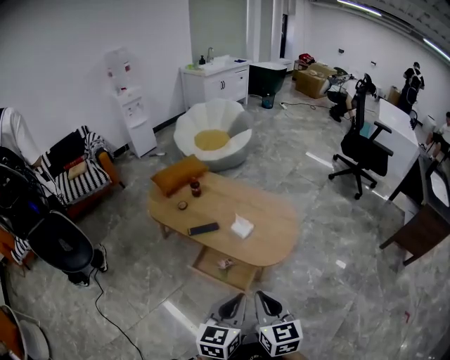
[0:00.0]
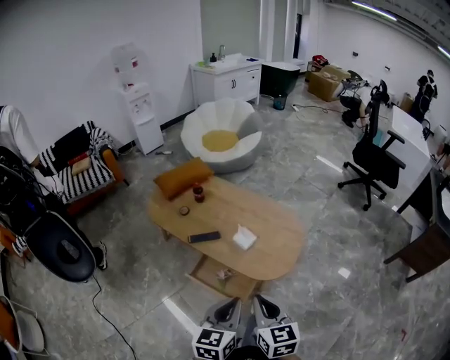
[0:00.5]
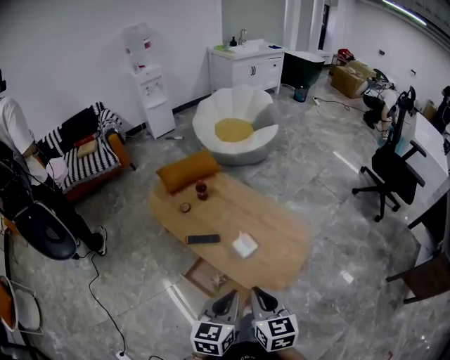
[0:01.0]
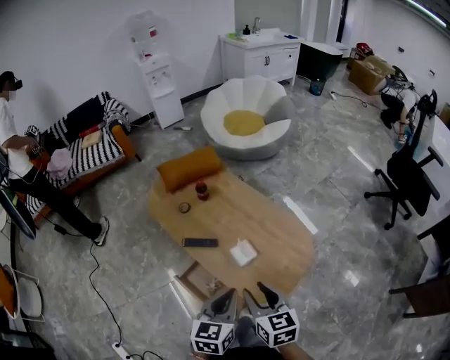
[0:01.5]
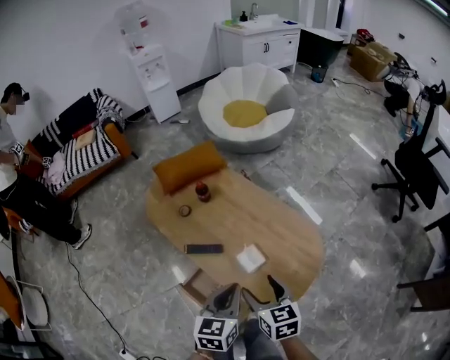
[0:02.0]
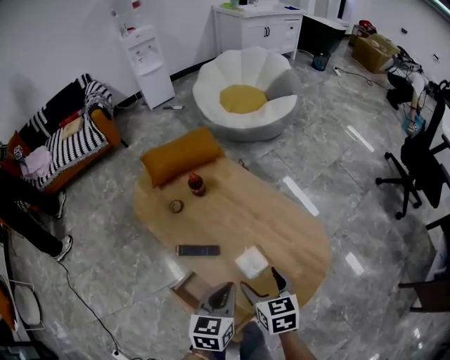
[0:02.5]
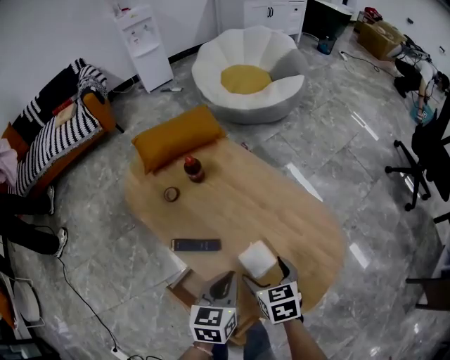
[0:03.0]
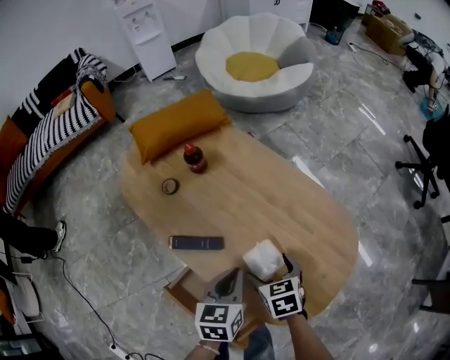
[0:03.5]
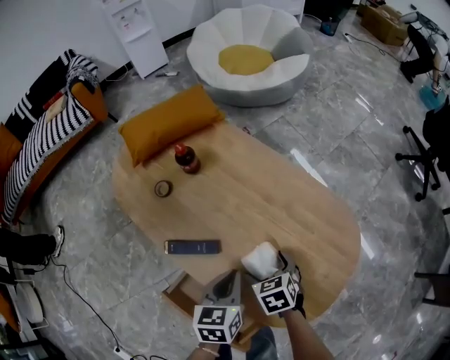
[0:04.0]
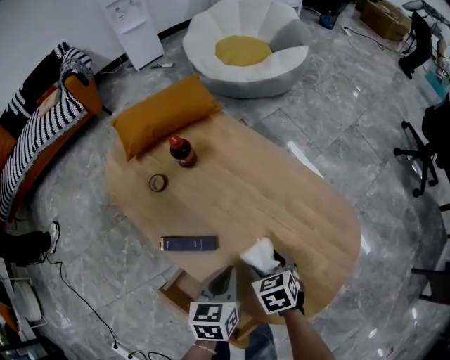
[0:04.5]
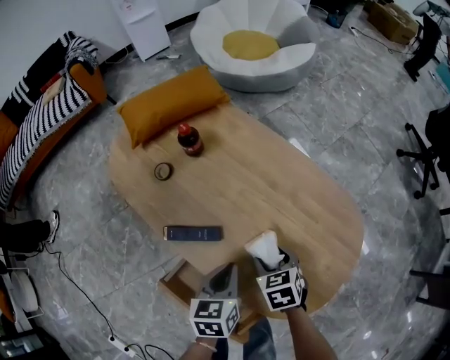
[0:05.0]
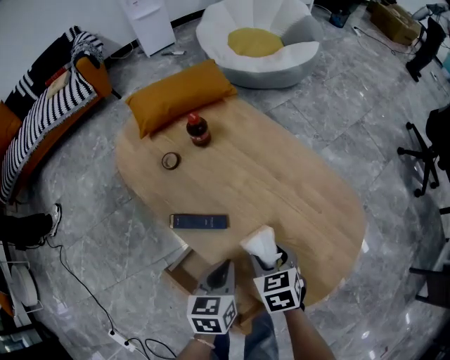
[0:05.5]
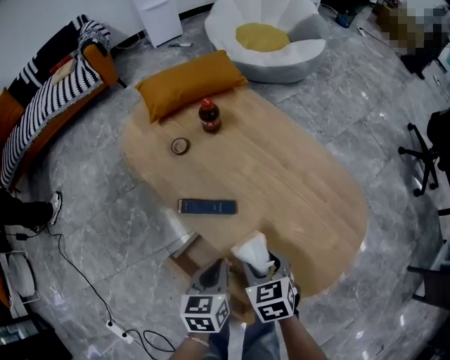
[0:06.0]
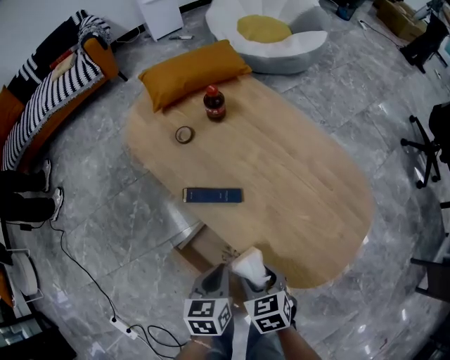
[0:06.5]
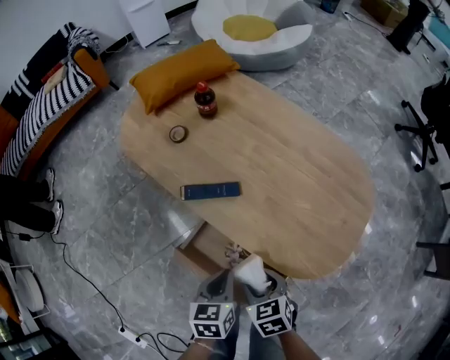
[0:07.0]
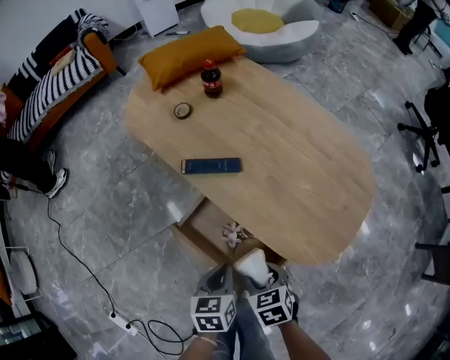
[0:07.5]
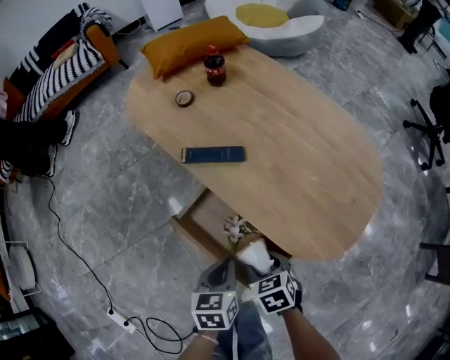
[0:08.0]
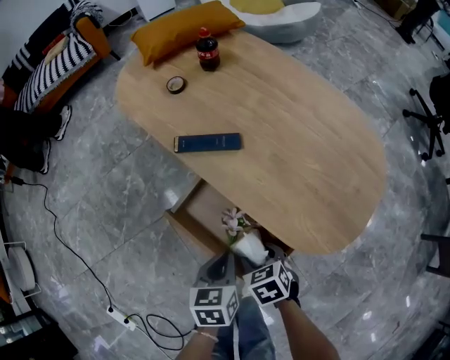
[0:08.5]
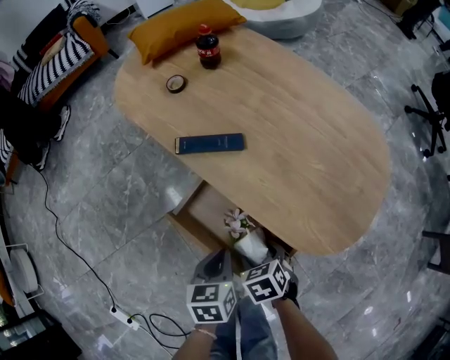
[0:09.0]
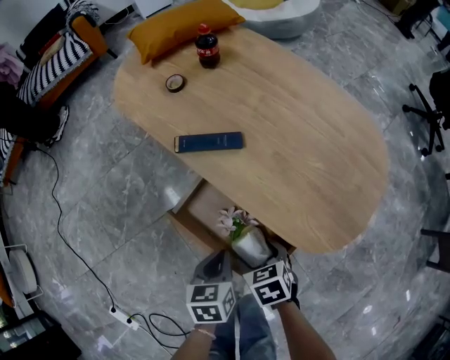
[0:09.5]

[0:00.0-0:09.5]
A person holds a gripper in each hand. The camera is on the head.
0:00.0 to 0:02.0: Both grippers move forward, approximately 30 cm. The left gripper turns by some 20 degrees, while the right gripper swivels roughly 30 degrees, and opens up.
0:02.0 to 0:04.0: Both grippers travel together downward, roughly 25 cm. The right gripper rotates approximately 30 degrees.
0:04.0 to 0:05.5: The left gripper changes place by roughly 5 cm, while the right gripper changes place by roughly 5 cm, and closes its fingers.
0:05.5 to 0:07.5: The left gripper is displaced backward and to the left by some 20 cm. Meanwhile the right gripper goes approximately 20 cm backward.
0:07.5 to 0:09.5: The right gripper goes roughly 5 cm downward.

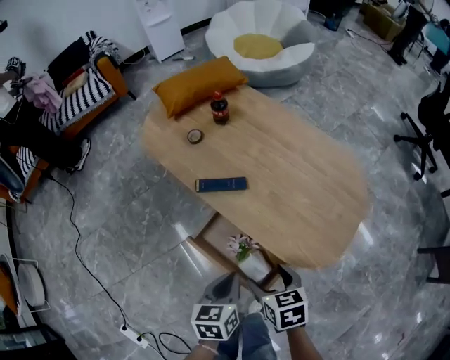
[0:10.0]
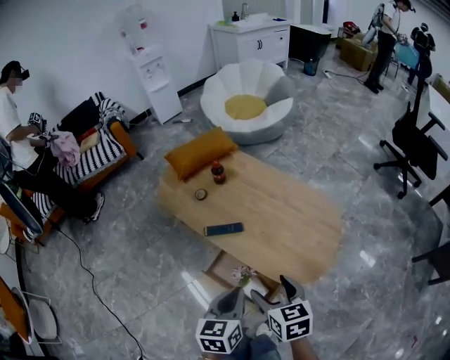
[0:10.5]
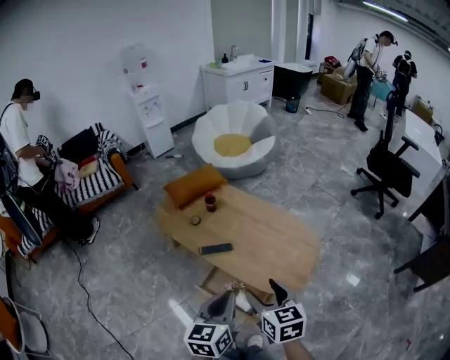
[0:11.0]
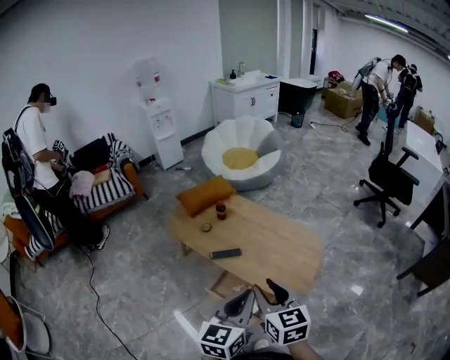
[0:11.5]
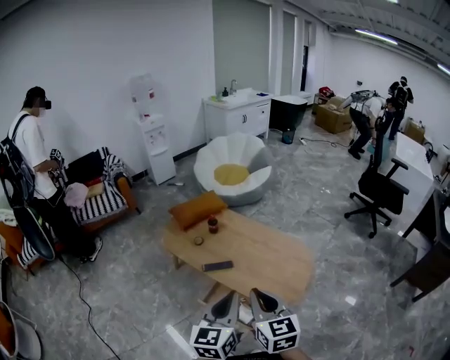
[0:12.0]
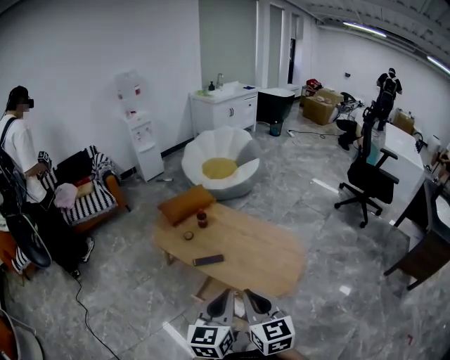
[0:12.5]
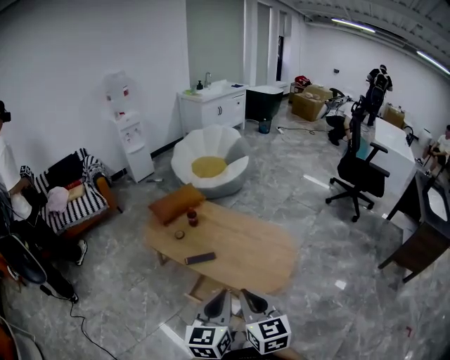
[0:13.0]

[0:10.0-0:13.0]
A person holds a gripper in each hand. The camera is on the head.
0:10.0 to 0:11.5: Both grippers travel together upward, some 40 cm. The right gripper points its fingers about 30 degrees further upward, and closes up. The left gripper points its fingers about 30 degrees further upward.
0:11.5 to 0:13.0: The grippers stay close to where they were, moving slightly.

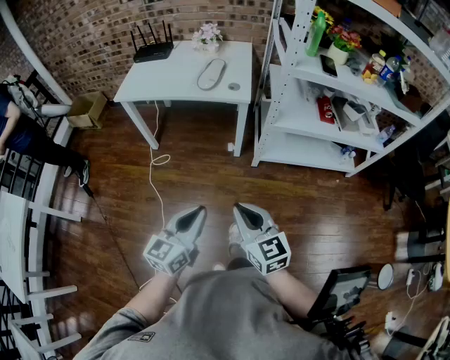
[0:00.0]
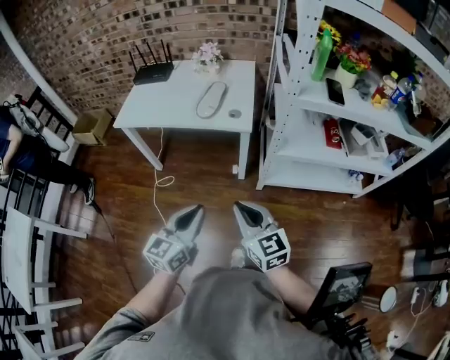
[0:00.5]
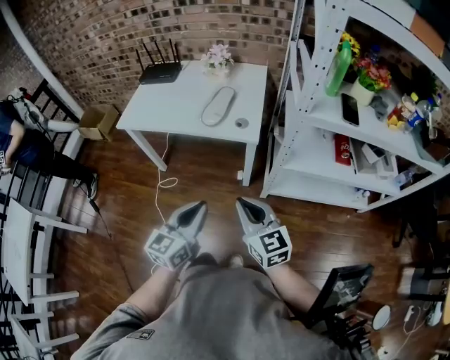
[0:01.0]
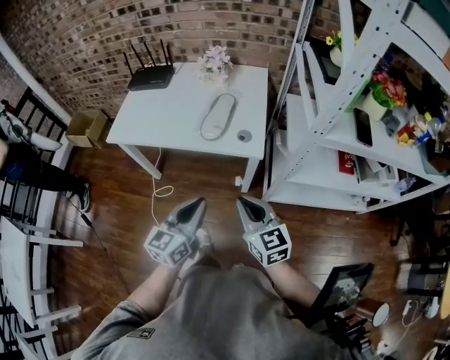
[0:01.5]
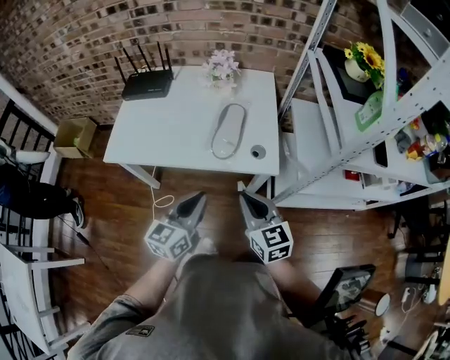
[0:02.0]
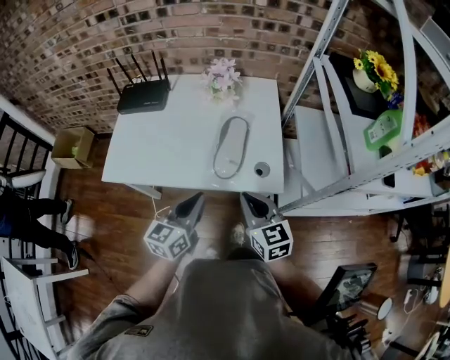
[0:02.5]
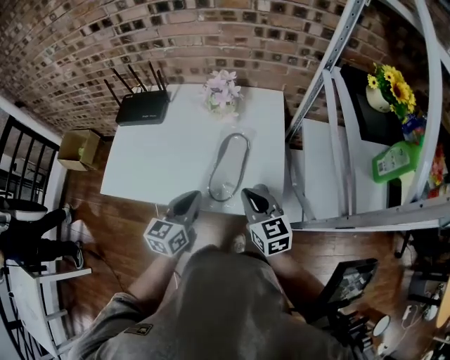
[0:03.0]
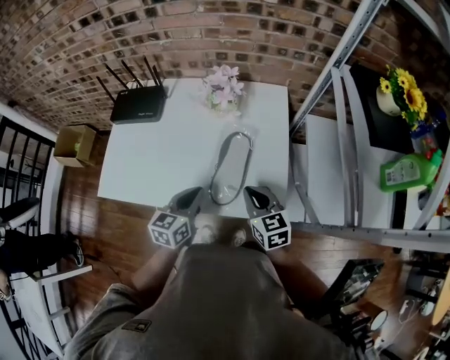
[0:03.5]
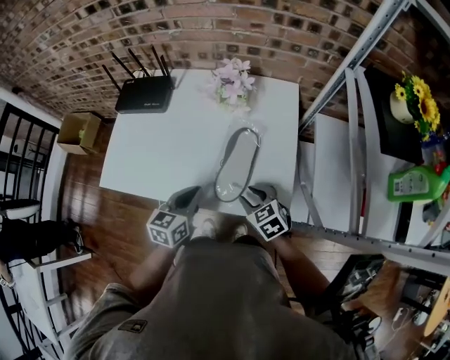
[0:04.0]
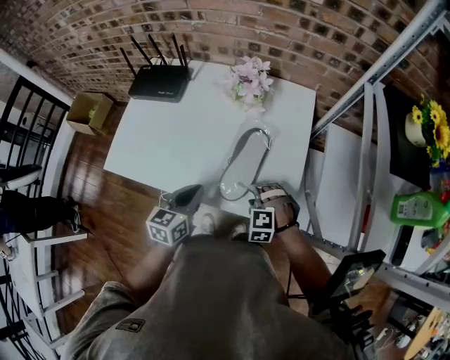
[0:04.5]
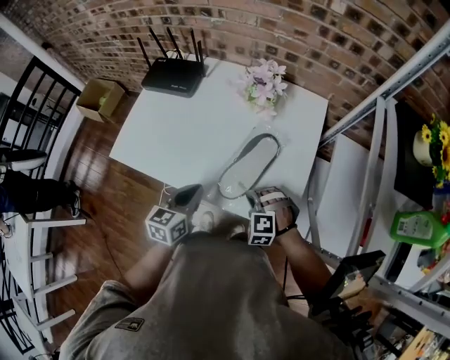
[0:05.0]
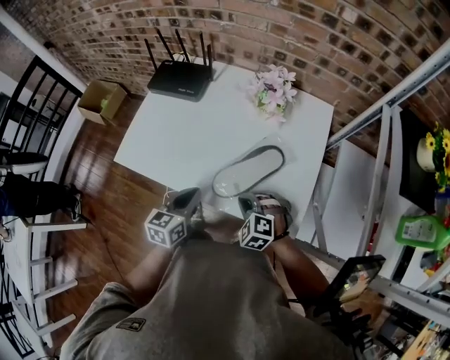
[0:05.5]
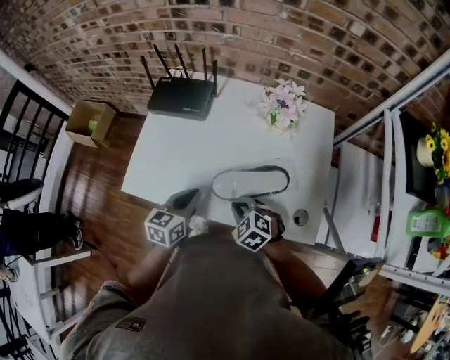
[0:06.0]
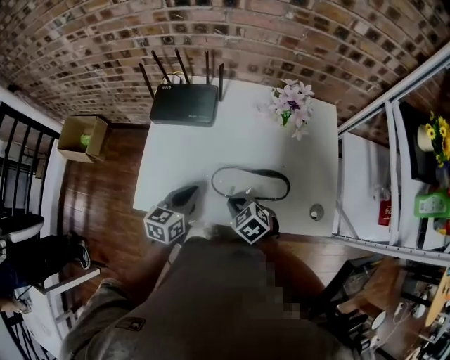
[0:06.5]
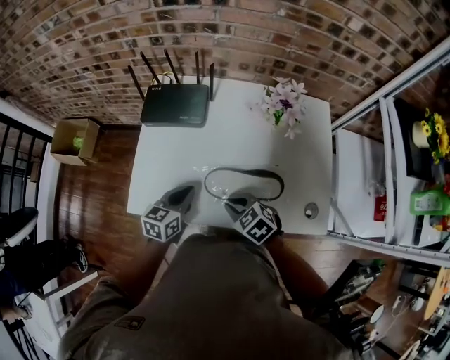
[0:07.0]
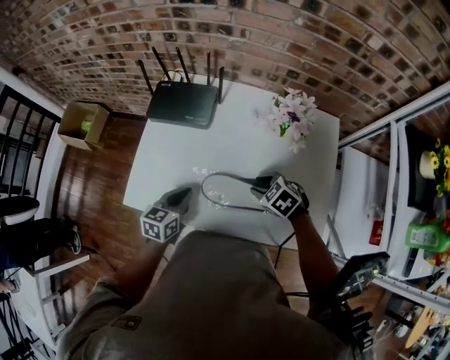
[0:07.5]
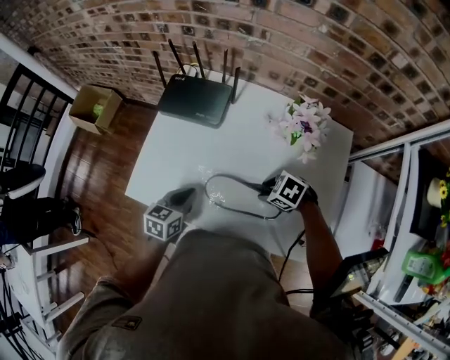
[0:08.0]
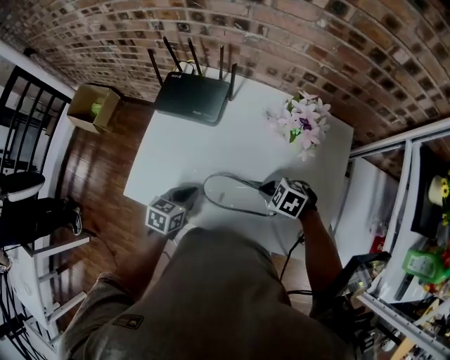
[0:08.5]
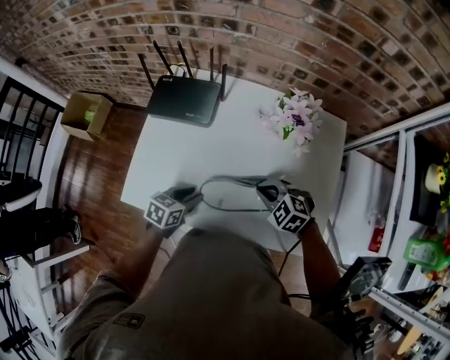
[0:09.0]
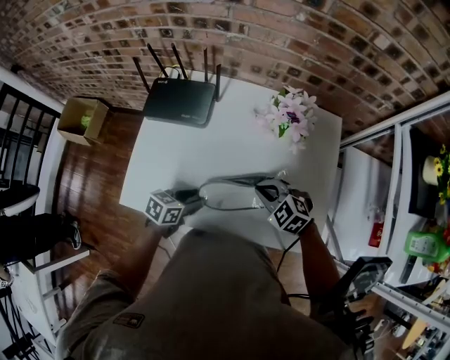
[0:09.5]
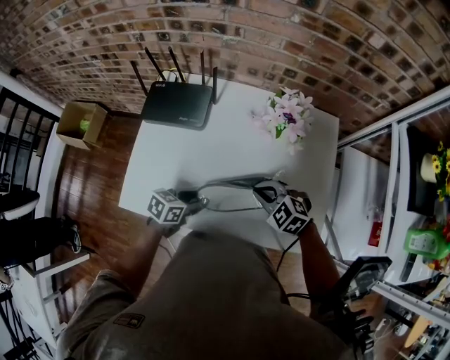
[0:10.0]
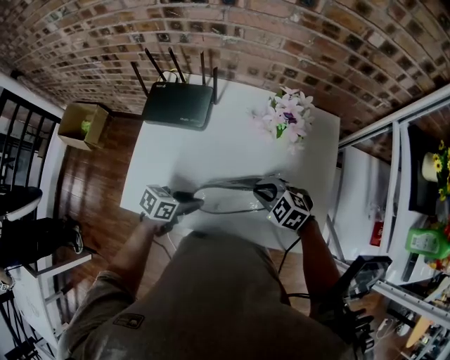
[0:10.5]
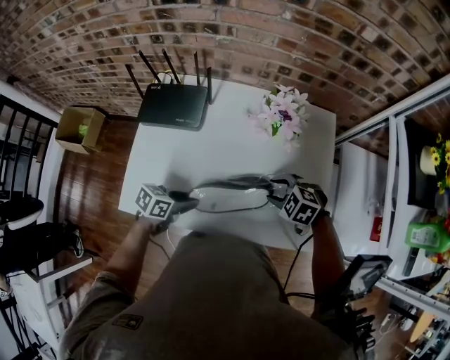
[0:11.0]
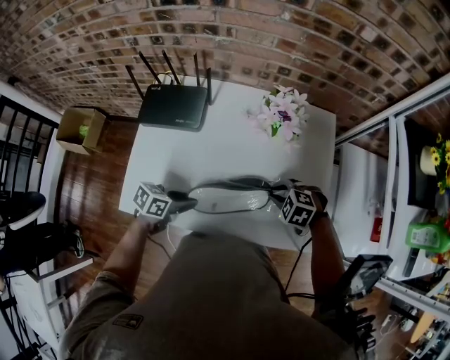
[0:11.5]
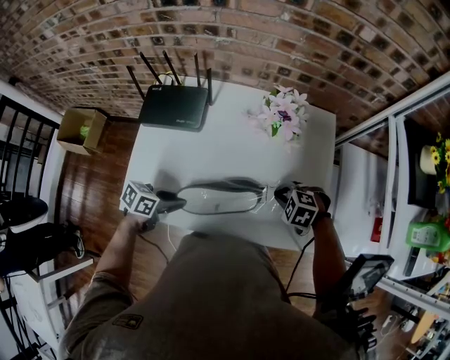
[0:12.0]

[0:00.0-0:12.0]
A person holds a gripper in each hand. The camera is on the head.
0:00.0 to 0:02.0: The two grippers travel together, forward, some 40 cm.
0:02.0 to 0:04.0: Both grippers travel together forward and downward, roughly 25 cm. The right gripper rotates about 30 degrees, and opens up.
0:04.0 to 0:06.0: The right gripper travels to the left by some 15 cm, turns by roughly 30 degrees, and closes up. The left gripper travels to the left and forward by roughly 15 cm.
0:06.0 to 0:08.0: The left gripper changes place by about 10 cm; the right gripper ends up about 15 cm from where it was, rotates roughly 30 degrees, and opens.
0:08.0 to 0:10.0: The left gripper ends up about 5 cm from where it was, changes its angle by roughly 30 degrees, and opens its fingers. The right gripper heads upward, covering roughly 5 cm, rotates about 30 degrees, and closes its fingers.
0:10.0 to 0:12.0: The right gripper ends up about 10 cm from where it was, swivels about 20 degrees, and opens, then closes once more. The left gripper shifts by about 5 cm.

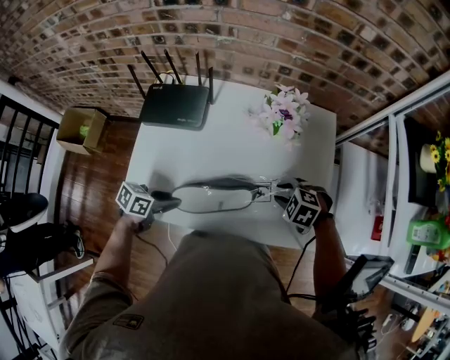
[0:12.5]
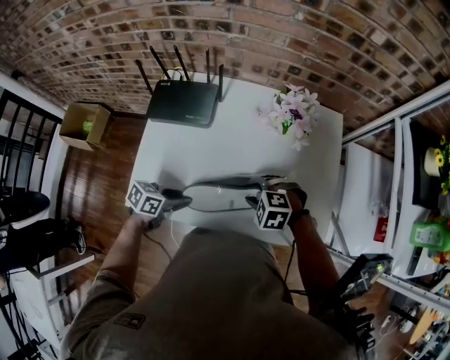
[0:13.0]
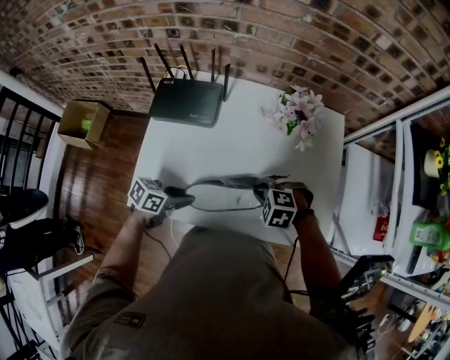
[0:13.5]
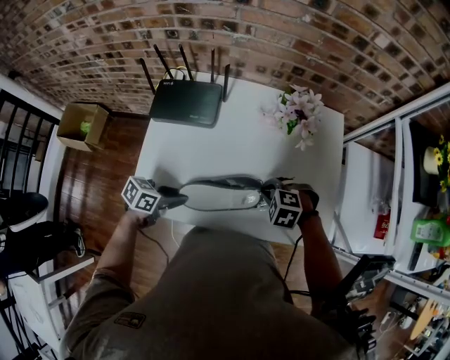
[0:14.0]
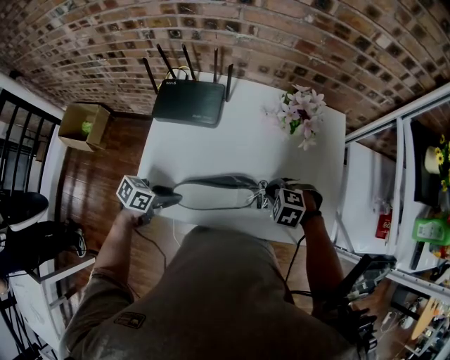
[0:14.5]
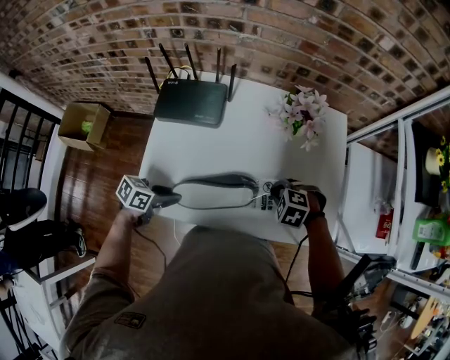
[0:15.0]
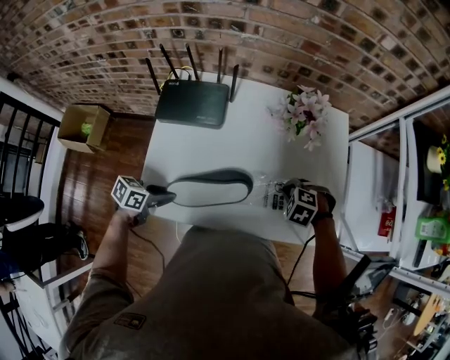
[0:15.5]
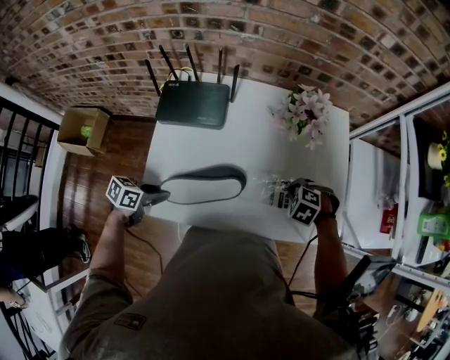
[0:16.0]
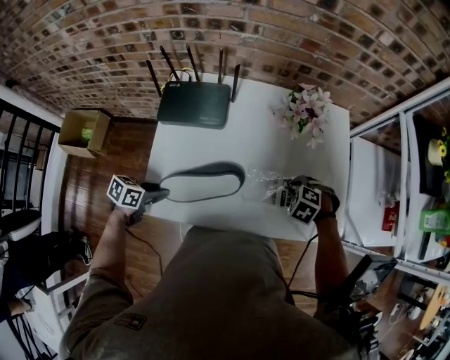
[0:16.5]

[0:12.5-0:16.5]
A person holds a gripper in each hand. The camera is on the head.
0:12.5 to 0:14.5: The right gripper moves about 10 cm, and closes up.
0:14.5 to 0:16.5: The left gripper shifts by approximately 10 cm. Meanwhile the right gripper moves some 5 cm.
